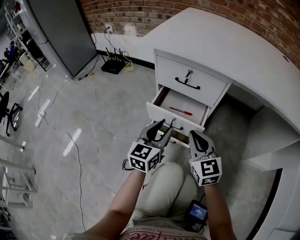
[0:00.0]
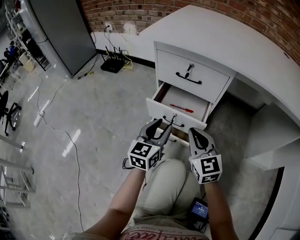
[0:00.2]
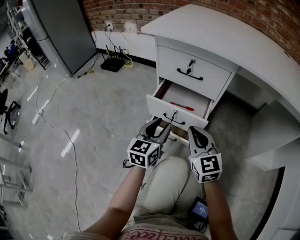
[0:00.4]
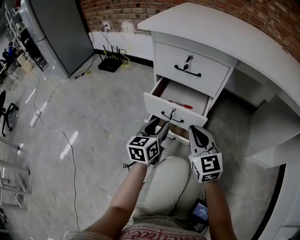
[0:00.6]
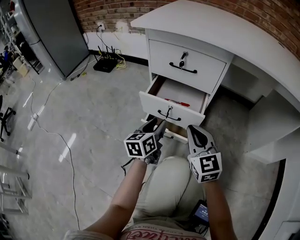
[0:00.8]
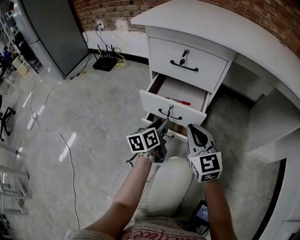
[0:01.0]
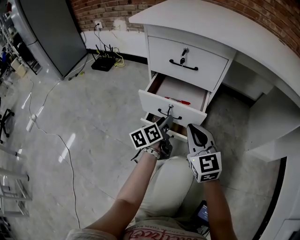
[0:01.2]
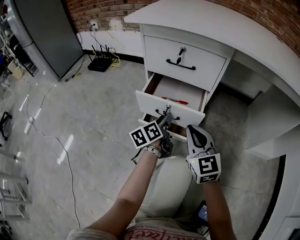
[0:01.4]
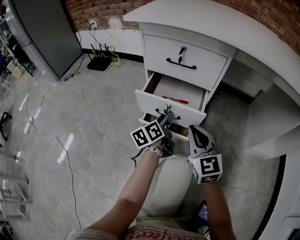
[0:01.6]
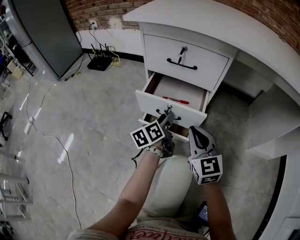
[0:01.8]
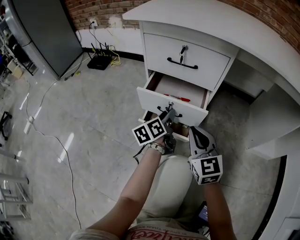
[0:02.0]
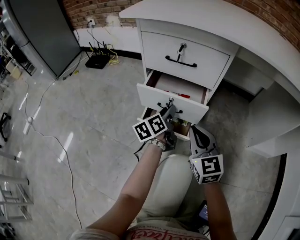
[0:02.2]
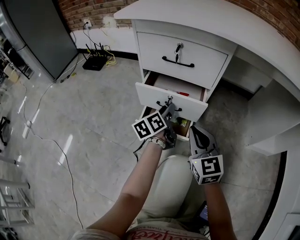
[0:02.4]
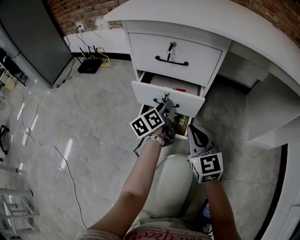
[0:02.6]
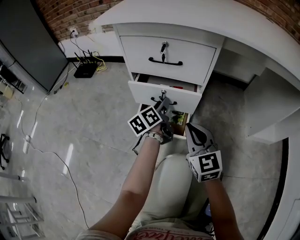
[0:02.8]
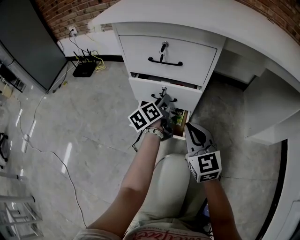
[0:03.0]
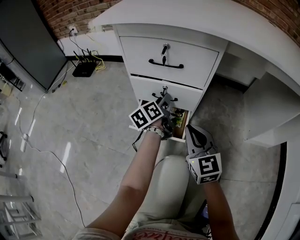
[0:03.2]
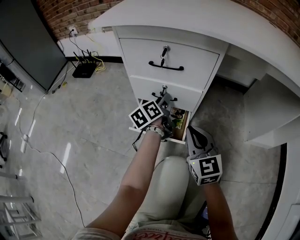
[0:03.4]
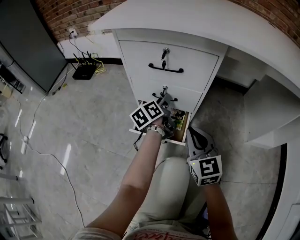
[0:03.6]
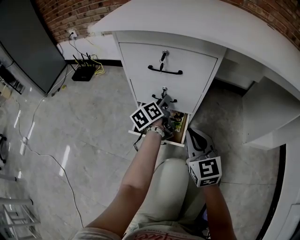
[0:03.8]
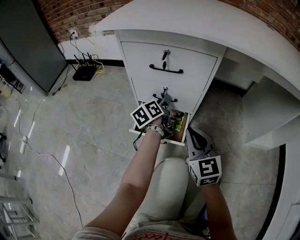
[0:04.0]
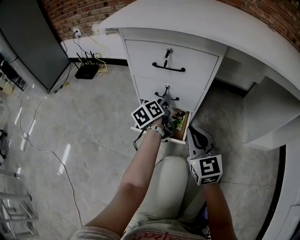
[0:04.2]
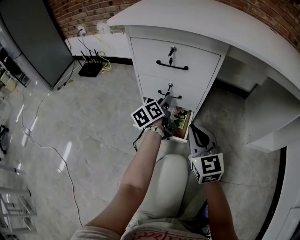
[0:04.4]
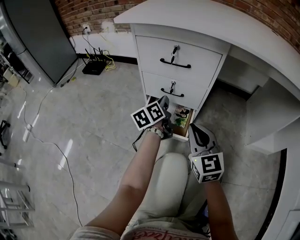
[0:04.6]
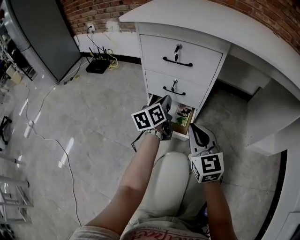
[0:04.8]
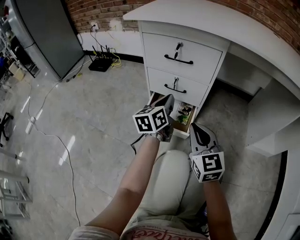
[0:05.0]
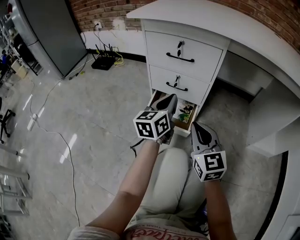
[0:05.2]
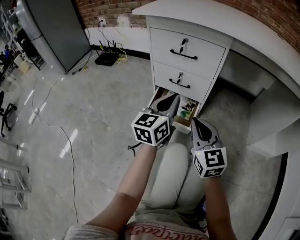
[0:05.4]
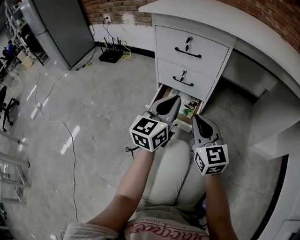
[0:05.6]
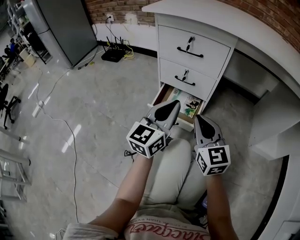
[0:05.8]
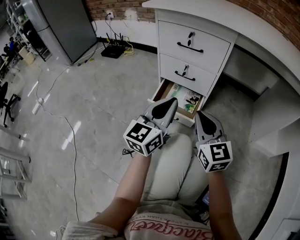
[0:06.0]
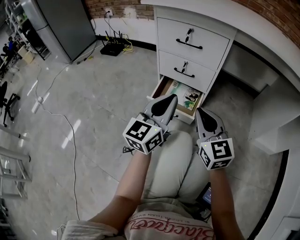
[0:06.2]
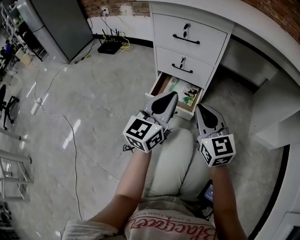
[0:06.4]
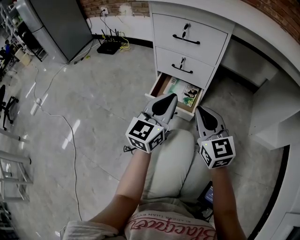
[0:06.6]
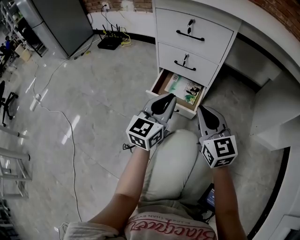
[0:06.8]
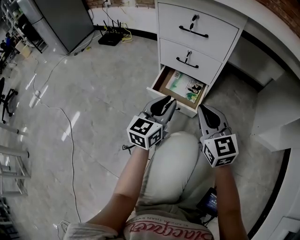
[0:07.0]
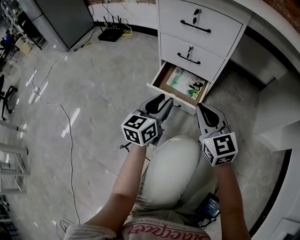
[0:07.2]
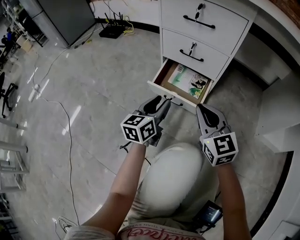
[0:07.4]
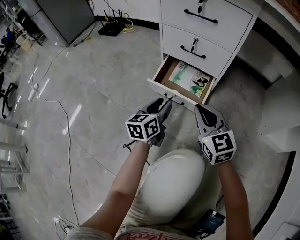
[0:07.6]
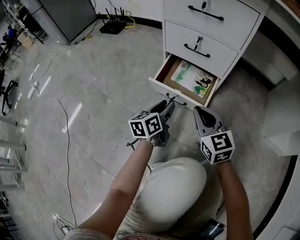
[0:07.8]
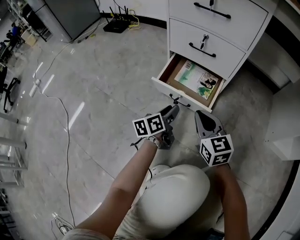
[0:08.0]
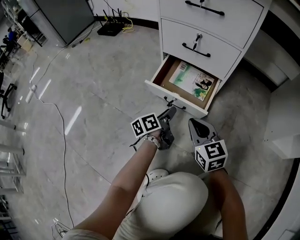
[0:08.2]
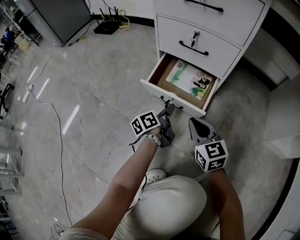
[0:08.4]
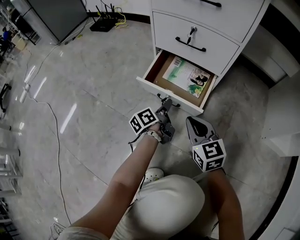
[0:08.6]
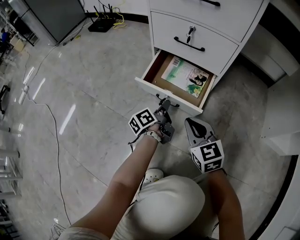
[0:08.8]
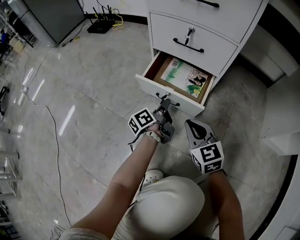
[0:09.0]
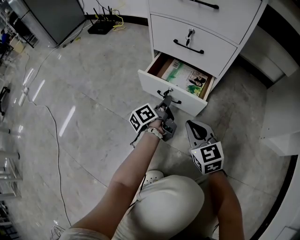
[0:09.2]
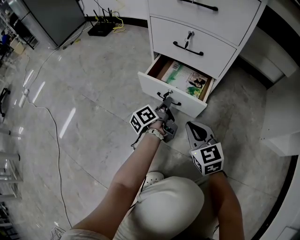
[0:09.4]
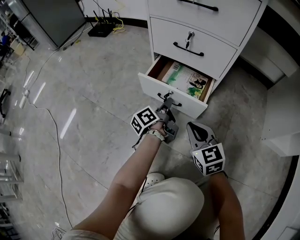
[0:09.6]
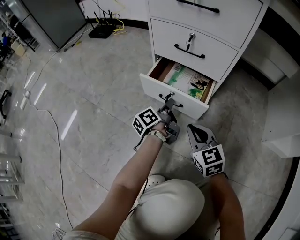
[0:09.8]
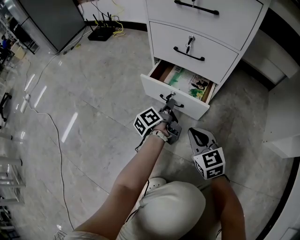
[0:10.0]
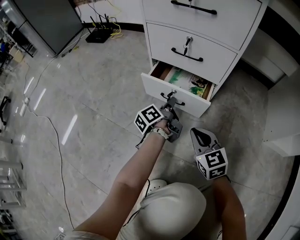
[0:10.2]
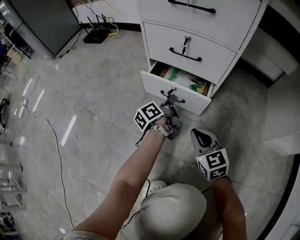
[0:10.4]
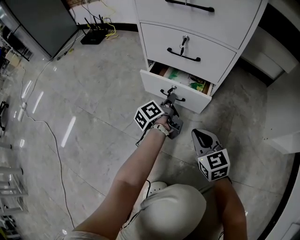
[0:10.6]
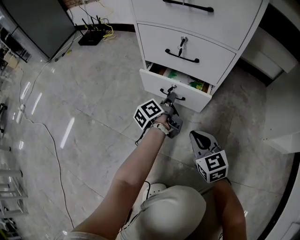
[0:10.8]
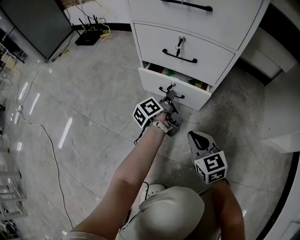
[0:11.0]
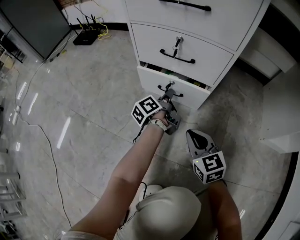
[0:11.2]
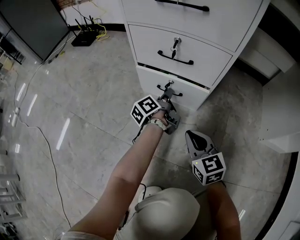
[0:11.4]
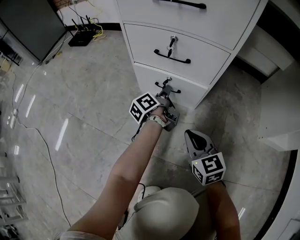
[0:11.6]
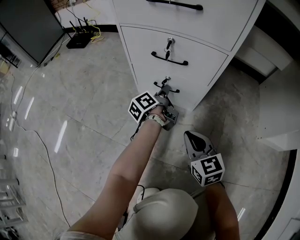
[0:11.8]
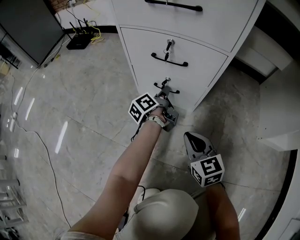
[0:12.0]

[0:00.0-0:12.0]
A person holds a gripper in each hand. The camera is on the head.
0:00.0 to 0:01.6: The right gripper moves downward, about 5 cm; the left gripper heads downward and forward, covering approximately 15 cm, and twists some 40 degrees counterclockwise, seen from behind.
0:01.6 to 0:03.0: The left gripper is displaced forward by about 10 cm.
0:03.0 to 0:04.4: There are only small adjustments of the grippers.
0:04.4 to 0:06.0: The left gripper travels backward and upward by roughly 25 cm, twists about 40 degrees clockwise, seen from behind, and closes. Meanwhile the right gripper goes approximately 10 cm backward.
0:06.0 to 0:07.6: The left gripper shifts about 25 cm downward, rotates about 30 degrees, and opens its fingers. Meanwhile the right gripper moves downward, roughly 15 cm.
0:07.6 to 0:09.0: The right gripper heads downward, covering about 15 cm. Meanwhile the left gripper goes about 15 cm downward and forward, rolls counterclockwise, seen from behind, by some 50 degrees, and closes.
0:09.0 to 0:10.4: The left gripper is displaced forward by about 5 cm.
0:10.4 to 0:12.0: The left gripper shifts about 5 cm forward.

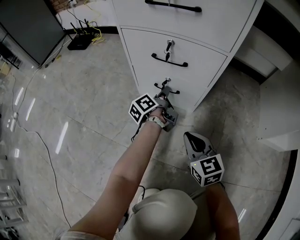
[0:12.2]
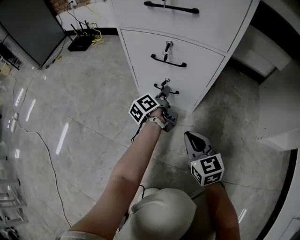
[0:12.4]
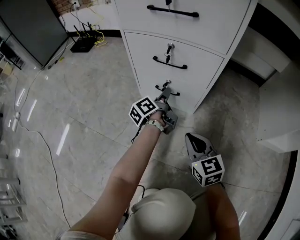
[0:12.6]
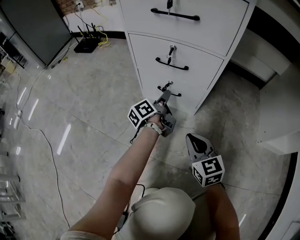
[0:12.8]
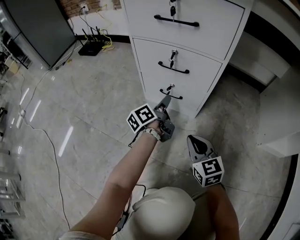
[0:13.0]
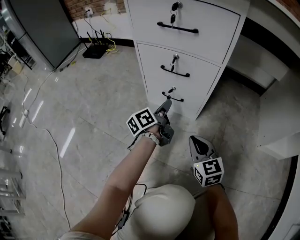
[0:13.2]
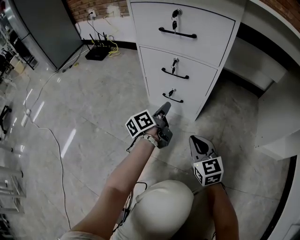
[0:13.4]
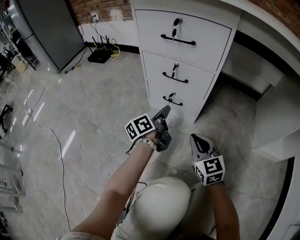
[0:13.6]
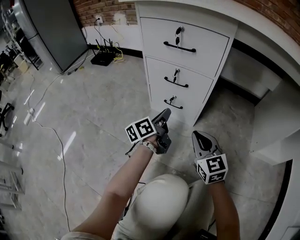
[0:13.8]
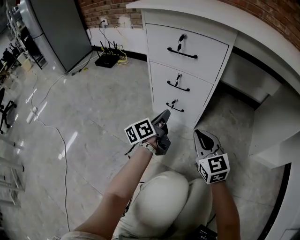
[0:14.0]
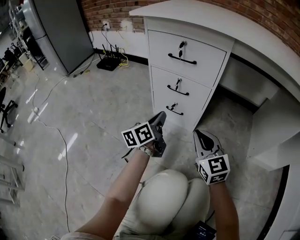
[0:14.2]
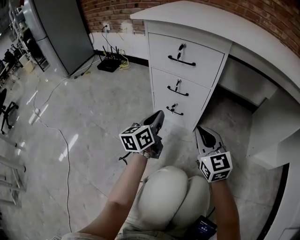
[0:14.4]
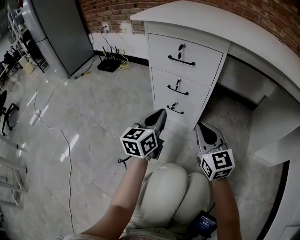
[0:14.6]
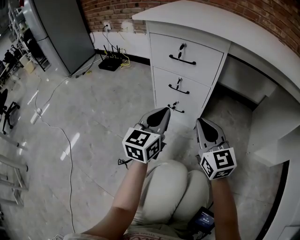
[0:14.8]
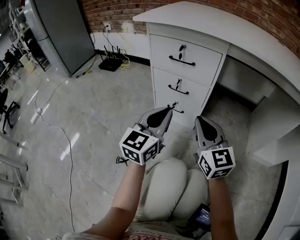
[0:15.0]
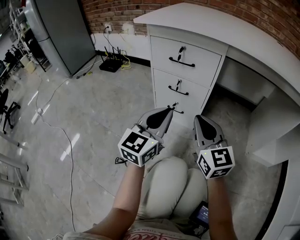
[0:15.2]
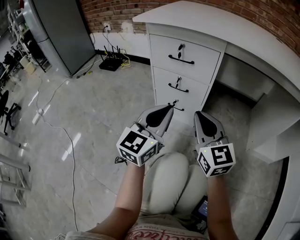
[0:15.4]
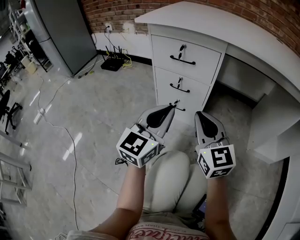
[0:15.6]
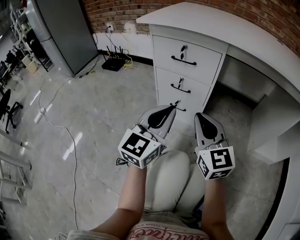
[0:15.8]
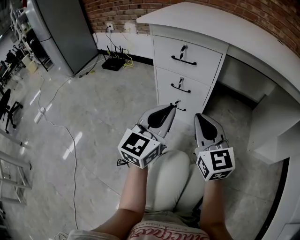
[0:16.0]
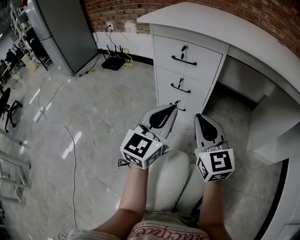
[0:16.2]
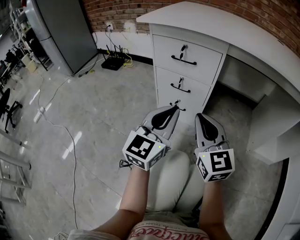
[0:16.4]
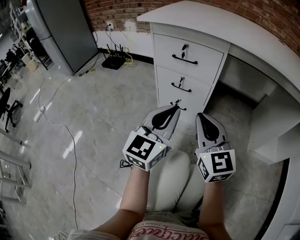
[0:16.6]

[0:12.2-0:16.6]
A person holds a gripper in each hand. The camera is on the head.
0:12.2 to 0:13.6: The right gripper heads upward, covering approximately 10 cm. Meanwhile the left gripper heads upward and backward, covering about 15 cm.
0:13.6 to 0:15.2: The right gripper heads upward, covering roughly 20 cm. Meanwhile the left gripper goes roughly 30 cm upward and backward, rolls clockwise, seen from behind, by approximately 60 degrees, and closes up.
0:15.2 to 0:16.6: The grippers move only a little.

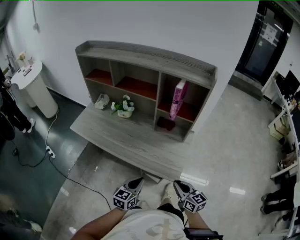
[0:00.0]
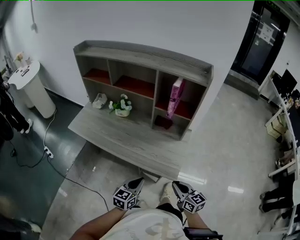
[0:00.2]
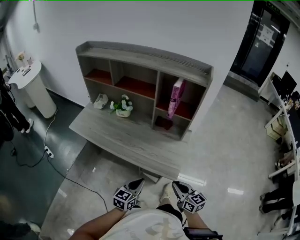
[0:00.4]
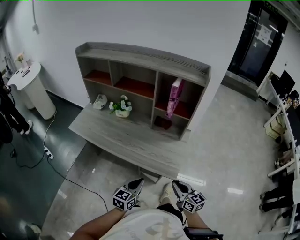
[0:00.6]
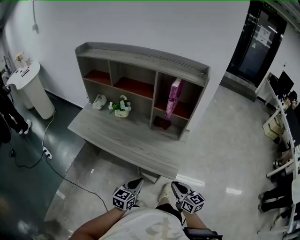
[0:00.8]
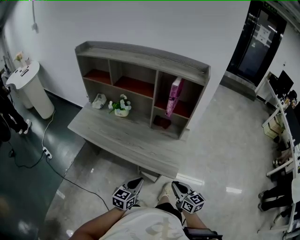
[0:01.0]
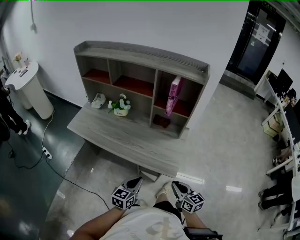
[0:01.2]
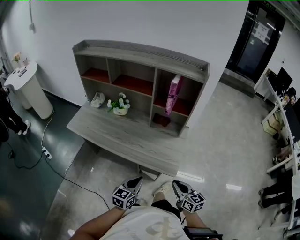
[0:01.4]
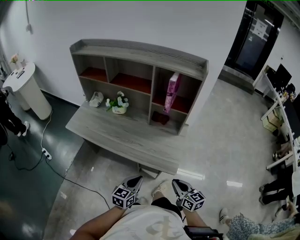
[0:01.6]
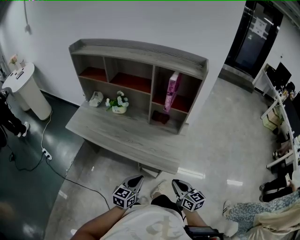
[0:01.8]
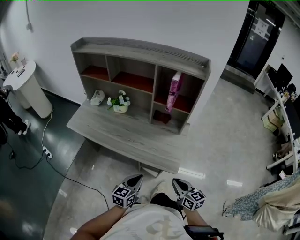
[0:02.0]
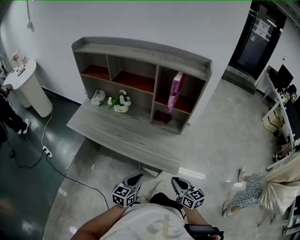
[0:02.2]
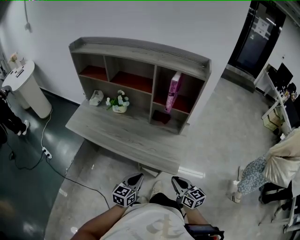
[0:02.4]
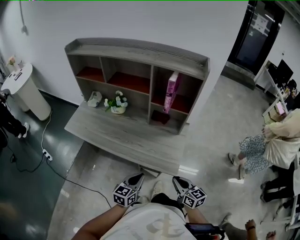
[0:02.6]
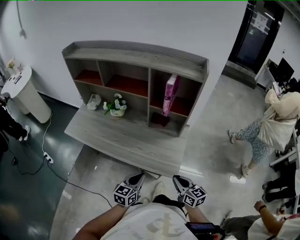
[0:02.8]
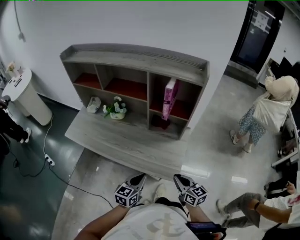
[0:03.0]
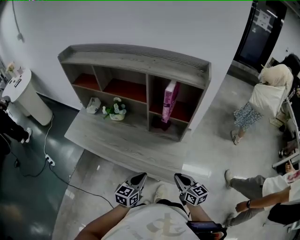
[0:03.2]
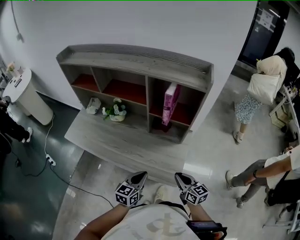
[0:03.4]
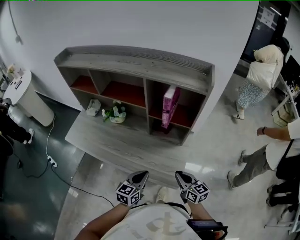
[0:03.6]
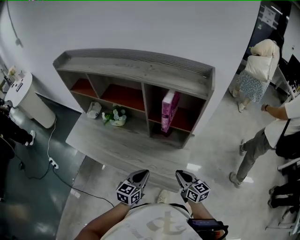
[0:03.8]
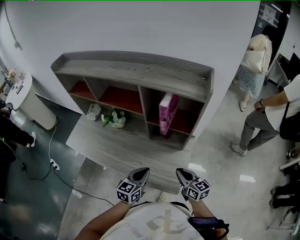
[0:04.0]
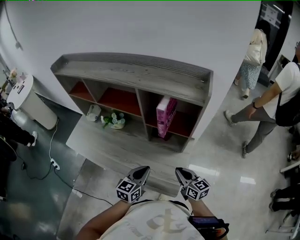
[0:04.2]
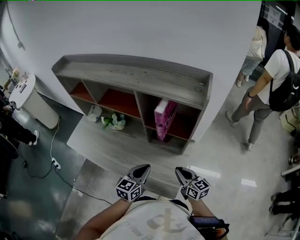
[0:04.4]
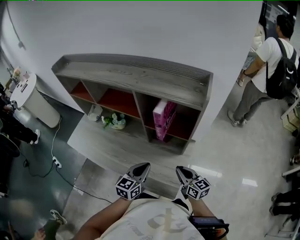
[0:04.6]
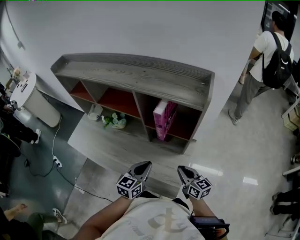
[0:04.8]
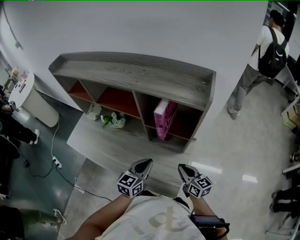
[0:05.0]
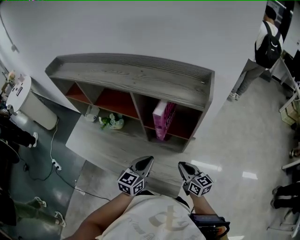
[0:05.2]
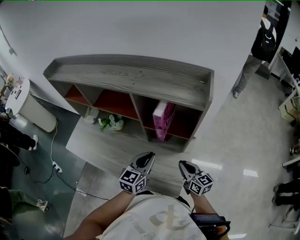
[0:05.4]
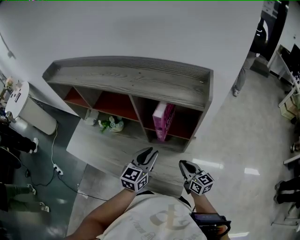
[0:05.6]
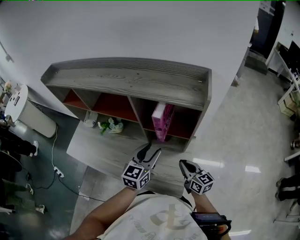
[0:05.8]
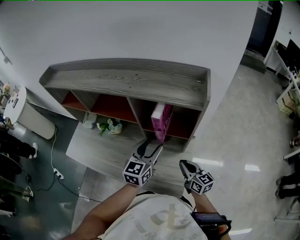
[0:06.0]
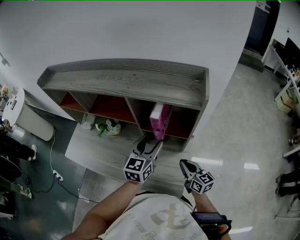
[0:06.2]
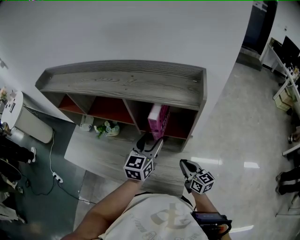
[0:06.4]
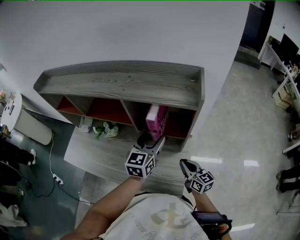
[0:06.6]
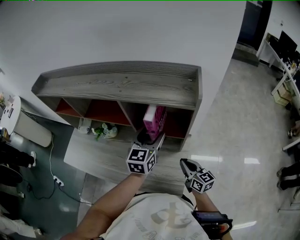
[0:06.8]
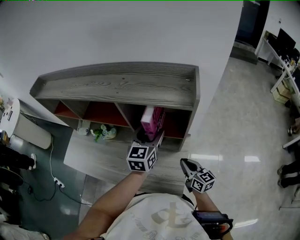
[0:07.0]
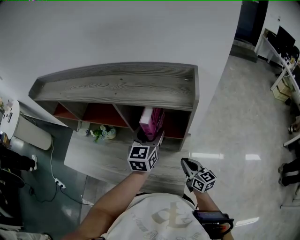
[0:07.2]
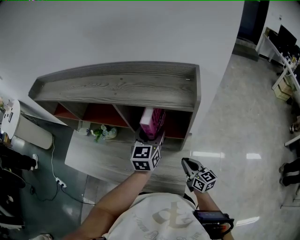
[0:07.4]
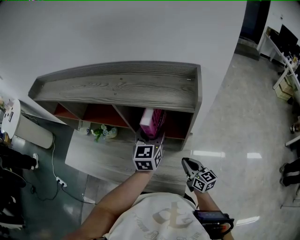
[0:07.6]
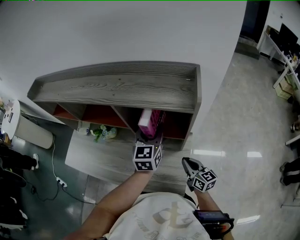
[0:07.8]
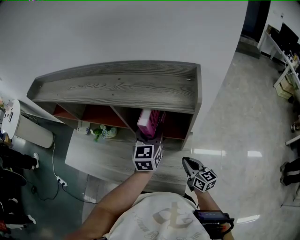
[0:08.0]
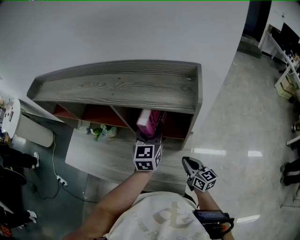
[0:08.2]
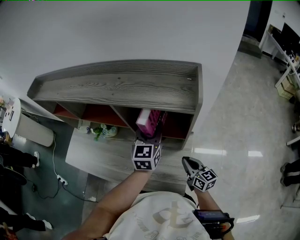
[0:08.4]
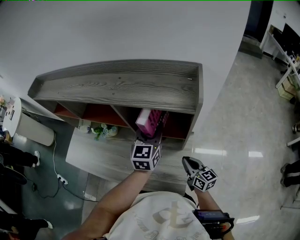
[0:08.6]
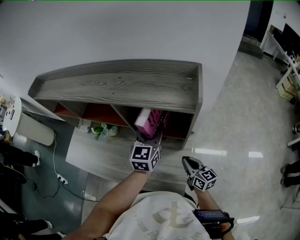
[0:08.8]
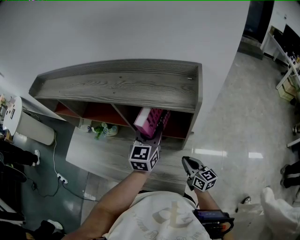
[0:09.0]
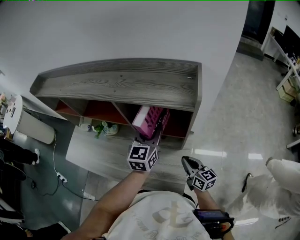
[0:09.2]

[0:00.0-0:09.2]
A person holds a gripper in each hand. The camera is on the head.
0:00.0 to 0:01.6: There are only small adjustments of the grippers.
0:01.6 to 0:03.0: Both grippers move forward, approximately 10 cm.
0:03.0 to 0:04.6: The two grippers go roughly 20 cm forward.
0:04.6 to 0:06.2: The left gripper shifts about 15 cm forward and upward, and opens up.
0:06.2 to 0:07.6: The left gripper shifts some 5 cm forward.
0:07.6 to 0:09.2: The left gripper closes.
